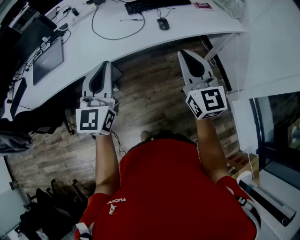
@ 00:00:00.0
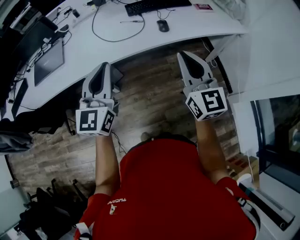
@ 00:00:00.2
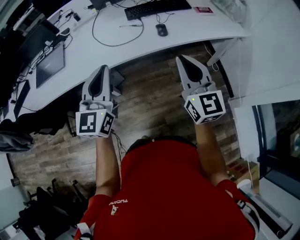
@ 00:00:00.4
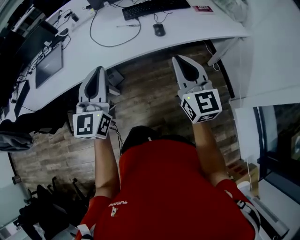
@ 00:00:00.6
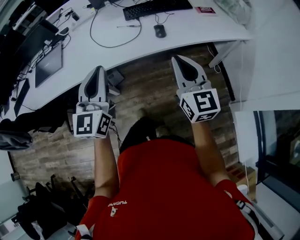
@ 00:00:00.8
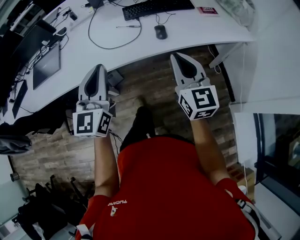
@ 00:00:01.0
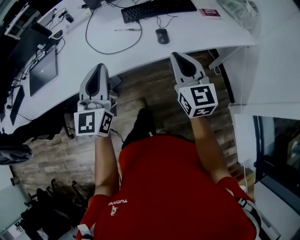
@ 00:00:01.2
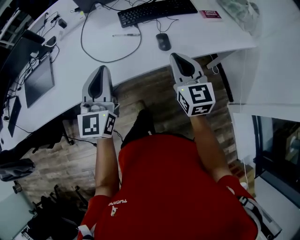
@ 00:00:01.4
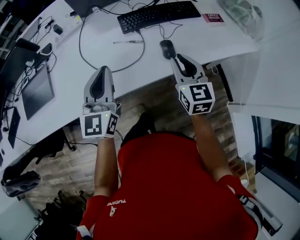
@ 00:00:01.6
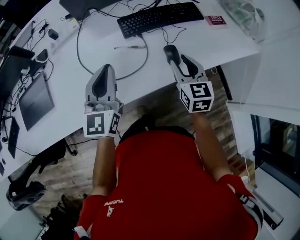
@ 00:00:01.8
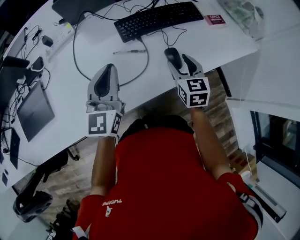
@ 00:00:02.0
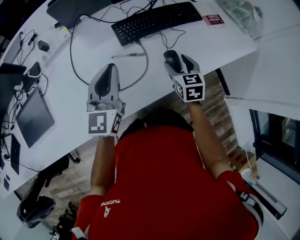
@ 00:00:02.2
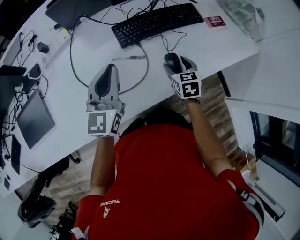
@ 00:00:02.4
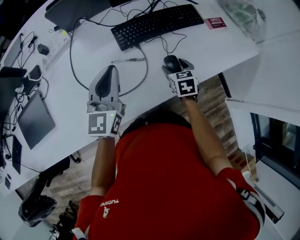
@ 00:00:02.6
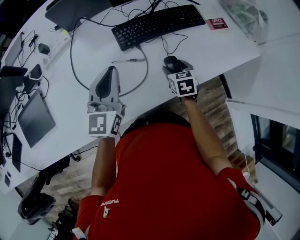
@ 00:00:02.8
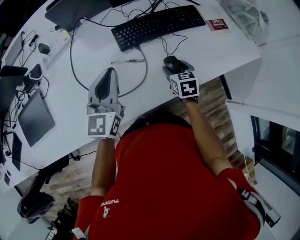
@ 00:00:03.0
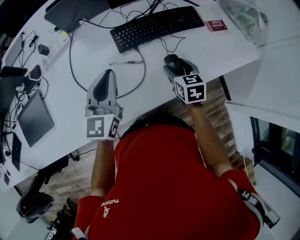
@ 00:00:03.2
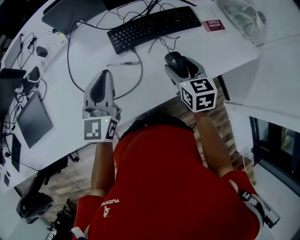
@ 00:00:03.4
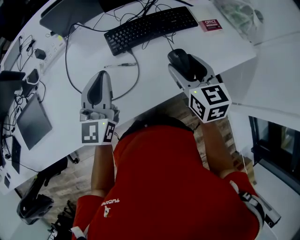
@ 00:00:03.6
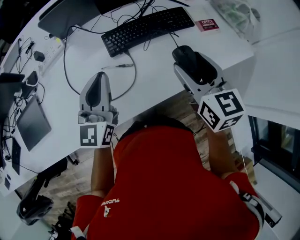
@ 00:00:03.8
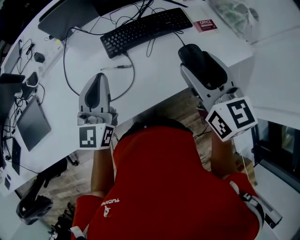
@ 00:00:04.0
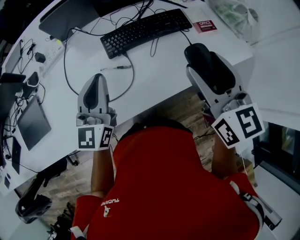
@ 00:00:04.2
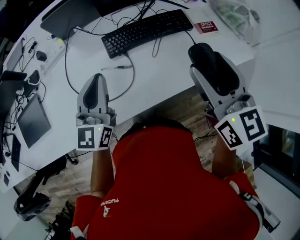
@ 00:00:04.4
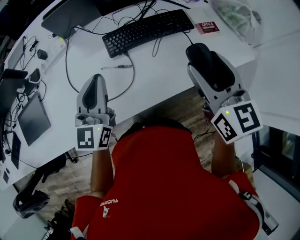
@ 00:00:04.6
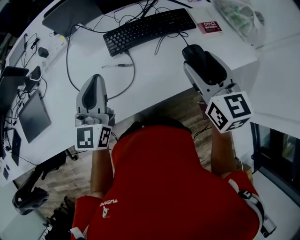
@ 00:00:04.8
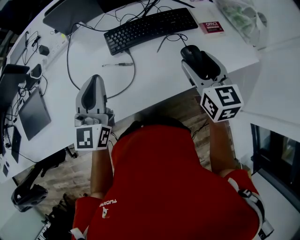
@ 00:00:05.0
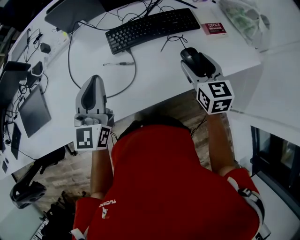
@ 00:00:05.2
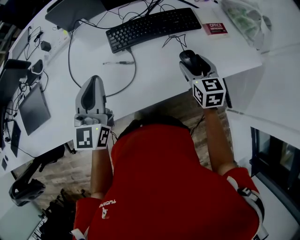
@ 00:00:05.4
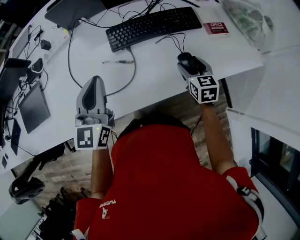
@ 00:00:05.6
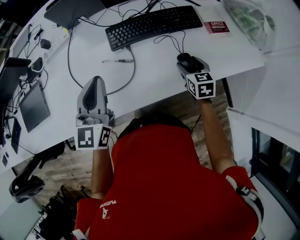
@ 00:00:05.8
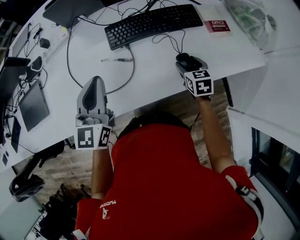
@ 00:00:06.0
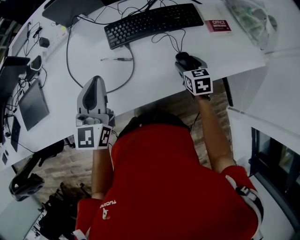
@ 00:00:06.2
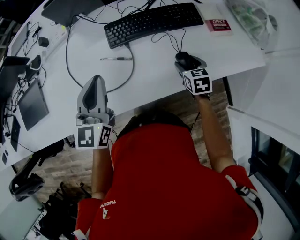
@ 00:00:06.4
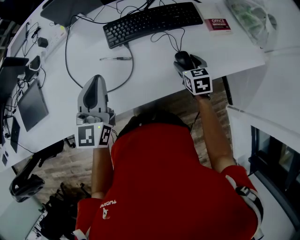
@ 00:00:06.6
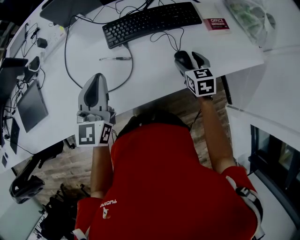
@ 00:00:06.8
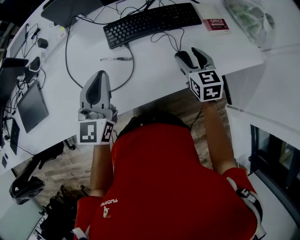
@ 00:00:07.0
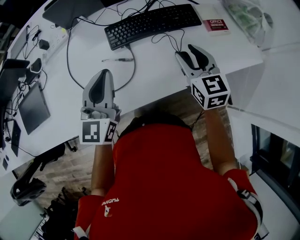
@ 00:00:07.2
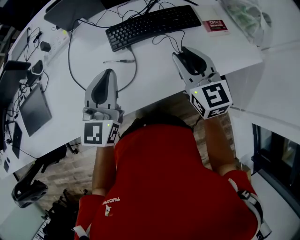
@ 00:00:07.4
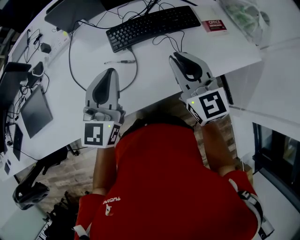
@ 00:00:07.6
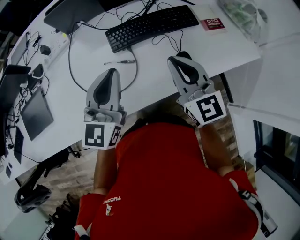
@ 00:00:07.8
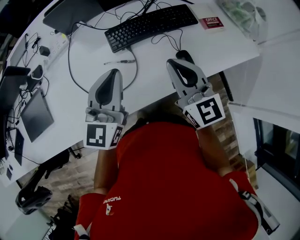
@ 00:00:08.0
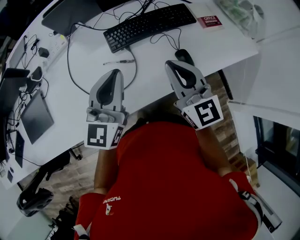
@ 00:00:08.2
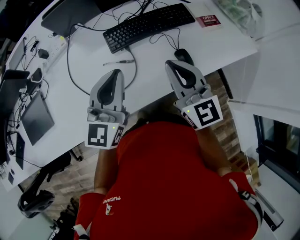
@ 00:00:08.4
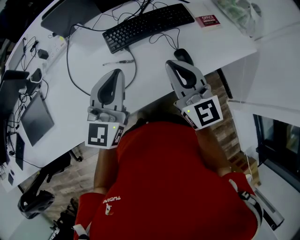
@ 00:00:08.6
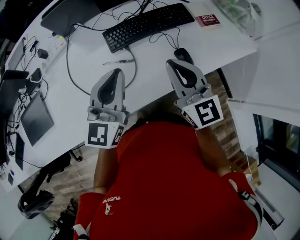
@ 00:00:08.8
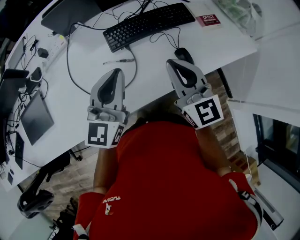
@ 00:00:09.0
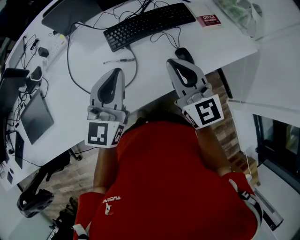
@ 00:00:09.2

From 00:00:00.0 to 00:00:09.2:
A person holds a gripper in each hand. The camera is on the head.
From 00:00:00.0 to 00:00:01.6: The right gripper shifts approximately 30 cm forward and downward; the left gripper heads forward, covering some 25 cm.
From 00:00:01.6 to 00:00:03.0: The right gripper goes some 20 cm downward and forward, angles its fingers downward, by about 30 degrees, and opens up. The left gripper goes approximately 15 cm forward.
From 00:00:03.0 to 00:00:04.6: The left gripper shifts roughly 5 cm upward. Meanwhile the right gripper travels upward by some 30 cm, and tips its fingers upward by some 30 degrees.
From 00:00:04.6 to 00:00:06.2: The right gripper travels downward by roughly 30 cm, and points its fingers approximately 30 degrees further downward.
From 00:00:06.2 to 00:00:07.6: The right gripper travels upward and to the left by roughly 25 cm, points its fingers approximately 40 degrees further upward, and closes its fingers.
From 00:00:07.6 to 00:00:09.2: There are only small adjustments of the grippers.

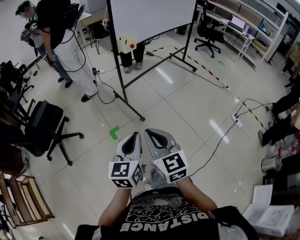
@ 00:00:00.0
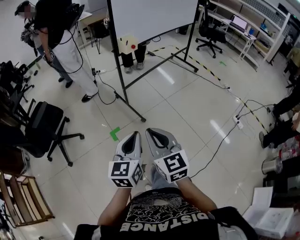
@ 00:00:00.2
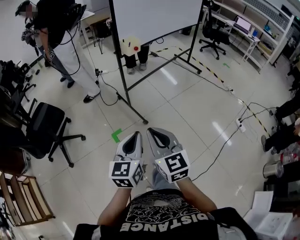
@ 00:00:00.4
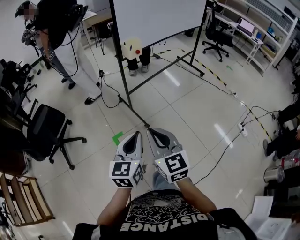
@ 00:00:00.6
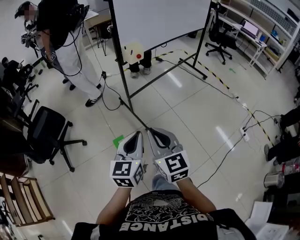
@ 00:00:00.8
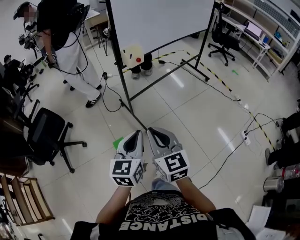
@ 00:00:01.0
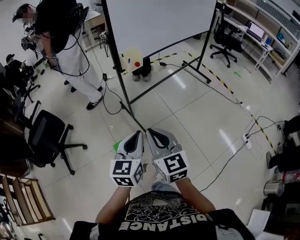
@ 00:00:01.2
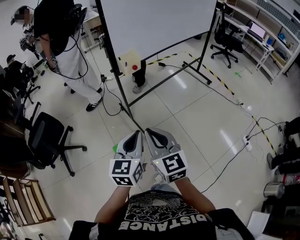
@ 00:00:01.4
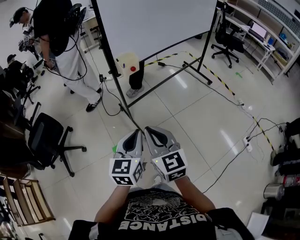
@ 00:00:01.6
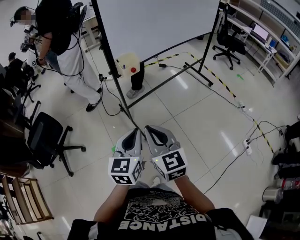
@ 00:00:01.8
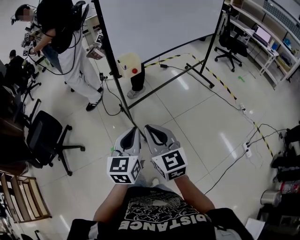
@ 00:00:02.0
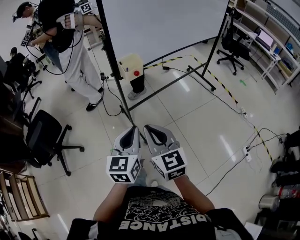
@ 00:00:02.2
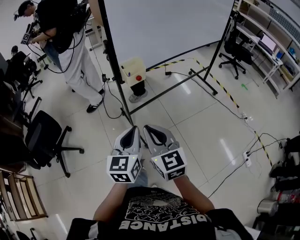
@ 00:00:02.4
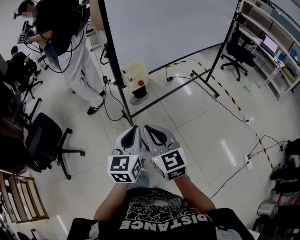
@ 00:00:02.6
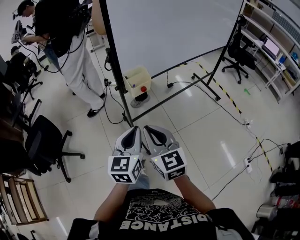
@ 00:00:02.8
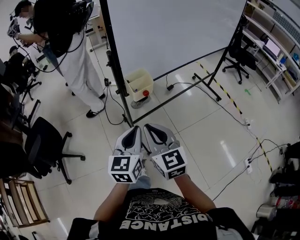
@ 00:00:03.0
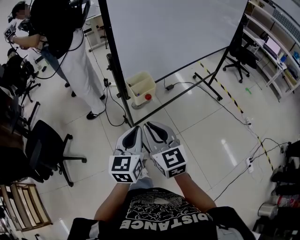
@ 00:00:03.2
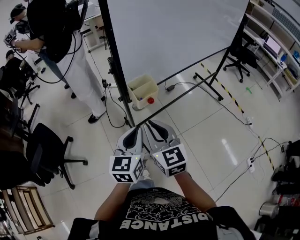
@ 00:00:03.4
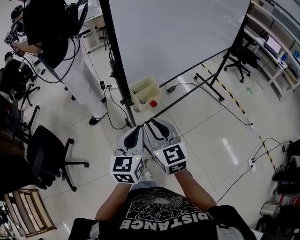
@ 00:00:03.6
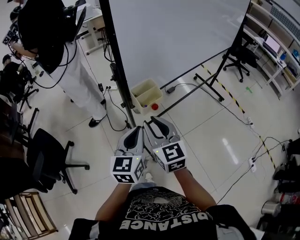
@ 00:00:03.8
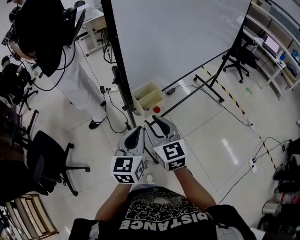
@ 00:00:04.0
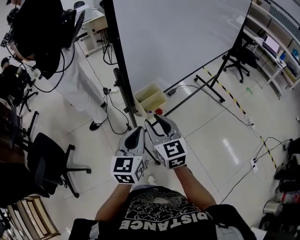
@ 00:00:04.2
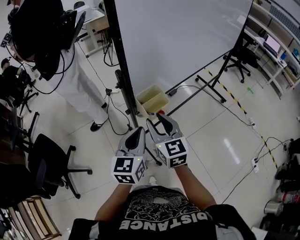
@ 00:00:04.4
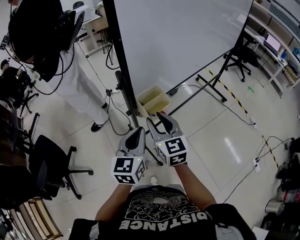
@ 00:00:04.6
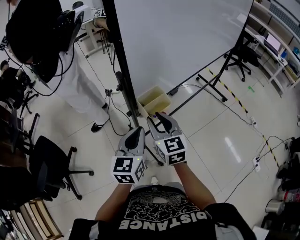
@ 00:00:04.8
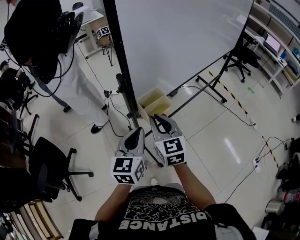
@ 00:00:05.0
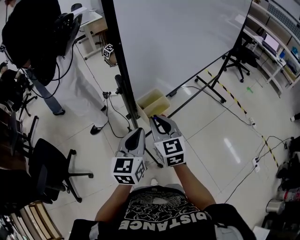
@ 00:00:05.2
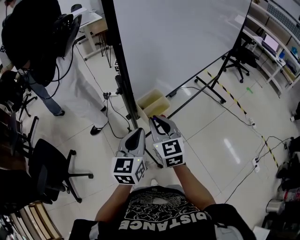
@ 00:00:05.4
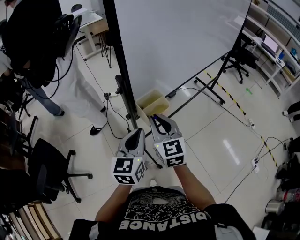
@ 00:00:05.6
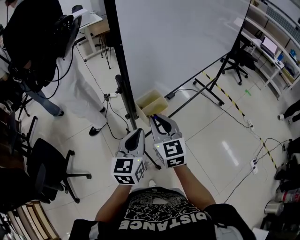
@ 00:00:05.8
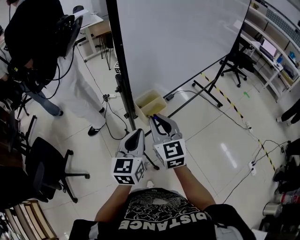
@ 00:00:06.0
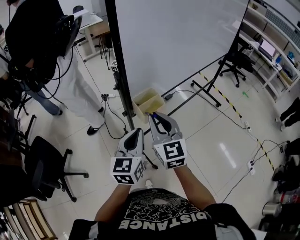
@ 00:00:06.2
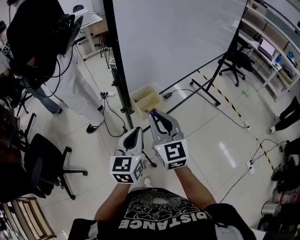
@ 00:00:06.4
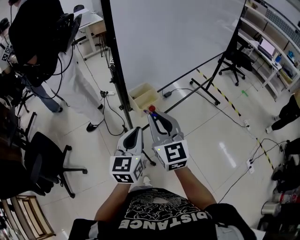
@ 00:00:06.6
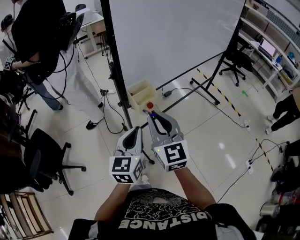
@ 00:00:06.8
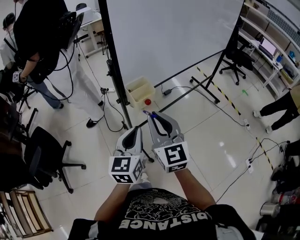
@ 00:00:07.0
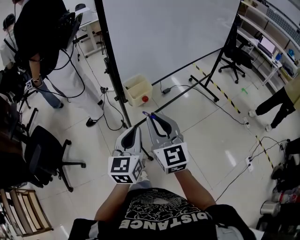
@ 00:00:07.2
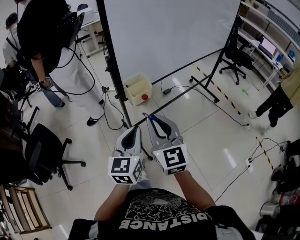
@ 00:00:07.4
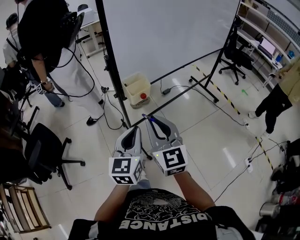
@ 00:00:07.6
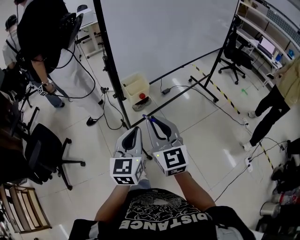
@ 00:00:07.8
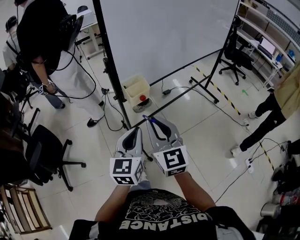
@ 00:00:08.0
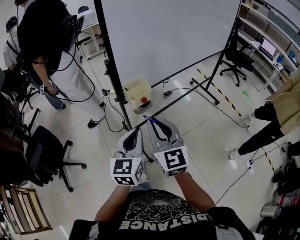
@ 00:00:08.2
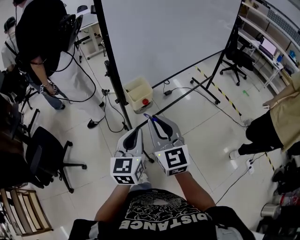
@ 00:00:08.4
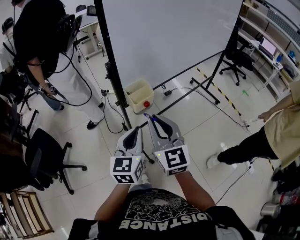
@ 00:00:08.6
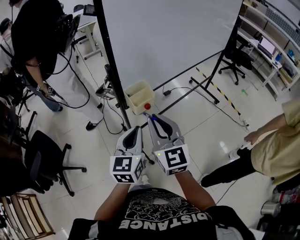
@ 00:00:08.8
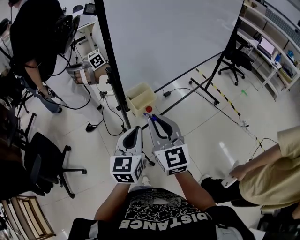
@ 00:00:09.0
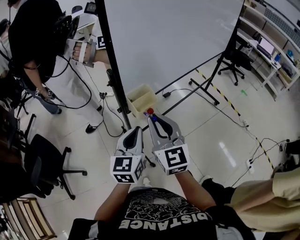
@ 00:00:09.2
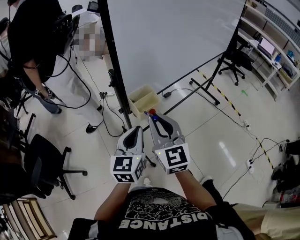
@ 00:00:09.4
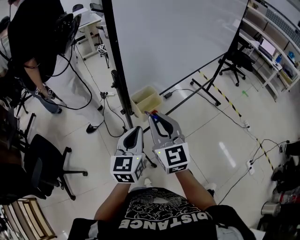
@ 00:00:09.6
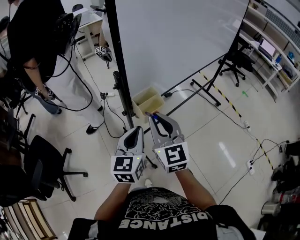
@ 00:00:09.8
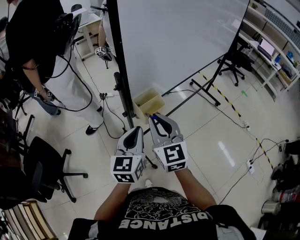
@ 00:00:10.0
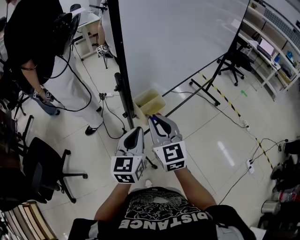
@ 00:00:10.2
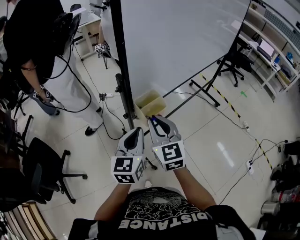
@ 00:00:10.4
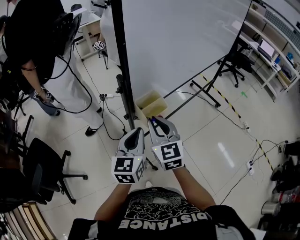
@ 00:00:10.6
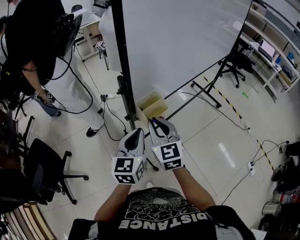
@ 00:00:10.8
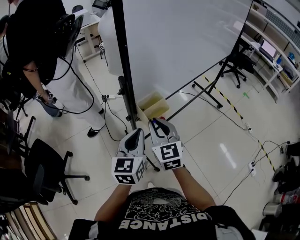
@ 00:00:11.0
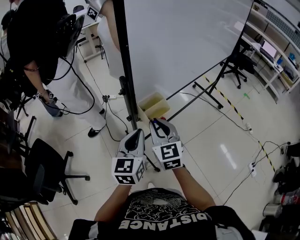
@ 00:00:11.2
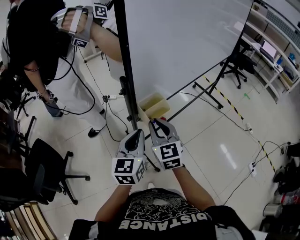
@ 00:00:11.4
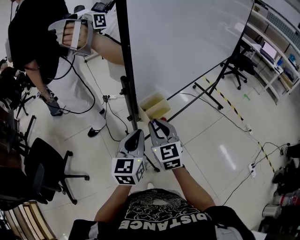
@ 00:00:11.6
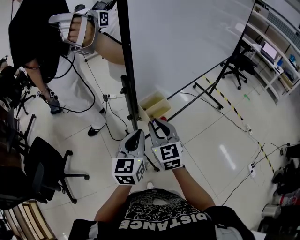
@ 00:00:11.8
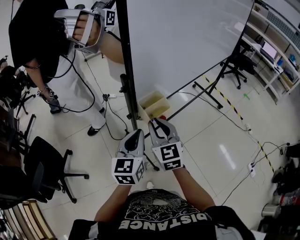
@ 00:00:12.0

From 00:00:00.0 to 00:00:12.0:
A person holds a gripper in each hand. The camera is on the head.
From 00:00:00.0 to 00:00:01.6: Both grippers move forward, about 25 cm.
From 00:00:01.6 to 00:00:03.0: The two grippers go some 20 cm forward.
From 00:00:03.0 to 00:00:04.4: Both grippers move forward, about 15 cm. The right gripper opens up.
From 00:00:04.4 to 00:00:06.0: The right gripper closes its fingers.
From 00:00:06.0 to 00:00:07.6: The left gripper travels backward and to the right by some 15 cm. Meanwhile the right gripper is displaced backward by approximately 15 cm.
From 00:00:07.6 to 00:00:09.0: Both grippers travel together forward, roughly 10 cm.
From 00:00:09.0 to 00:00:10.4: The two grippers go roughly 5 cm forward.
From 00:00:10.4 to 00:00:12.0: The grippers move only a little.

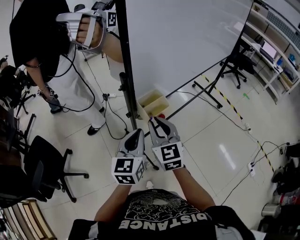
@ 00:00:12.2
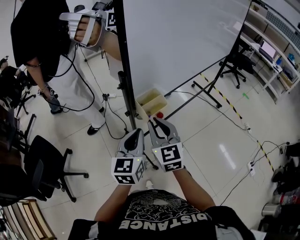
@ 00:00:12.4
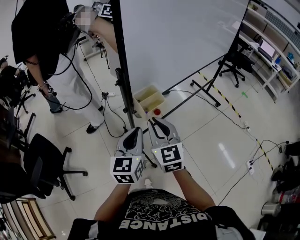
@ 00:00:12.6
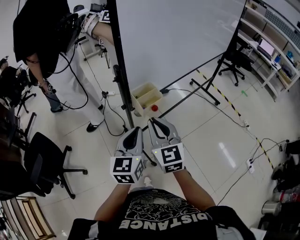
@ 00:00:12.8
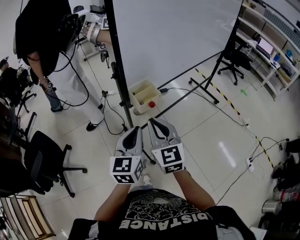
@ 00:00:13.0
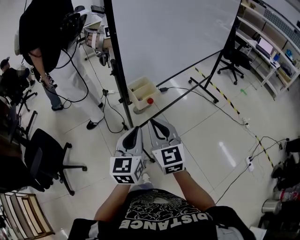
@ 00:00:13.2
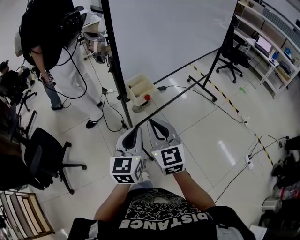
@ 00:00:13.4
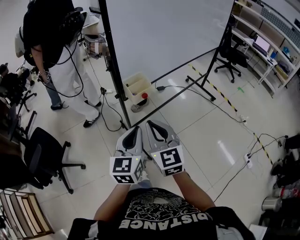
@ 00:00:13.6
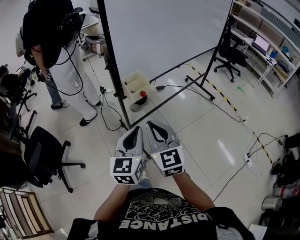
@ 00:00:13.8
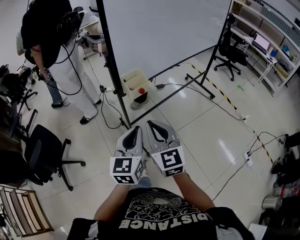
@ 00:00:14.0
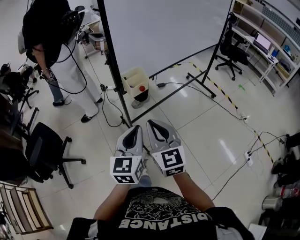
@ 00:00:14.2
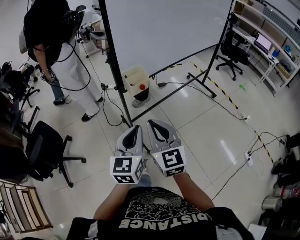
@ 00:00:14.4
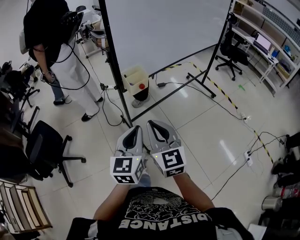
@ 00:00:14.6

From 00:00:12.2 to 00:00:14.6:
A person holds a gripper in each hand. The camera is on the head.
From 00:00:12.2 to 00:00:13.4: Both grippers travel together backward, about 10 cm.
From 00:00:13.4 to 00:00:14.6: Both grippers move backward, about 10 cm.
